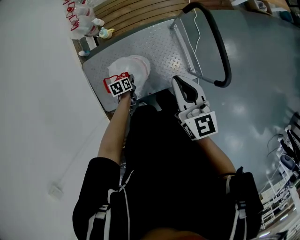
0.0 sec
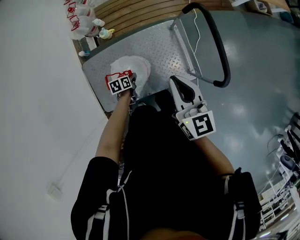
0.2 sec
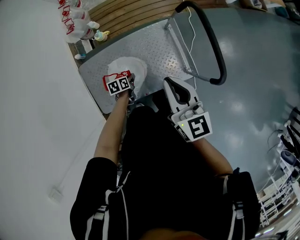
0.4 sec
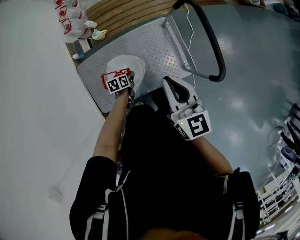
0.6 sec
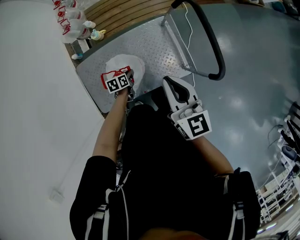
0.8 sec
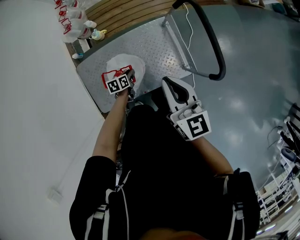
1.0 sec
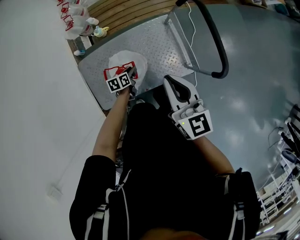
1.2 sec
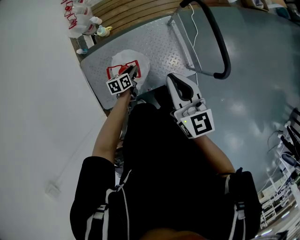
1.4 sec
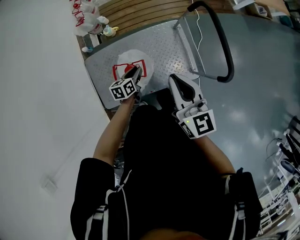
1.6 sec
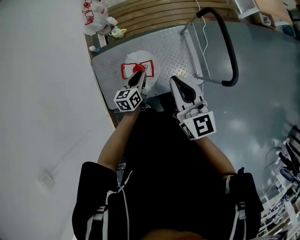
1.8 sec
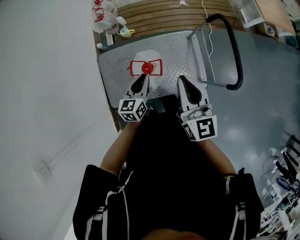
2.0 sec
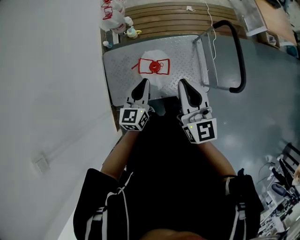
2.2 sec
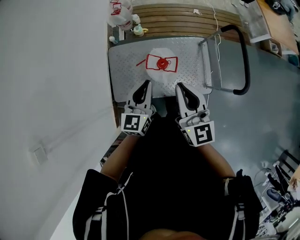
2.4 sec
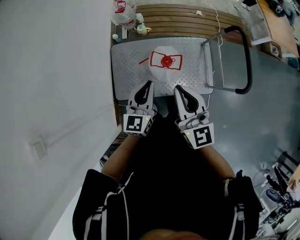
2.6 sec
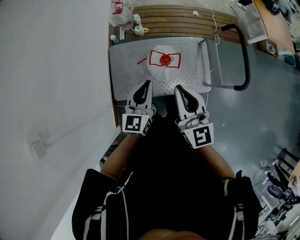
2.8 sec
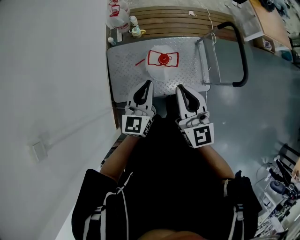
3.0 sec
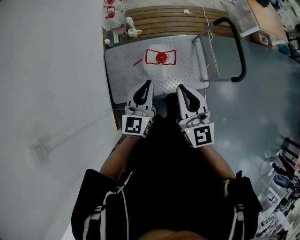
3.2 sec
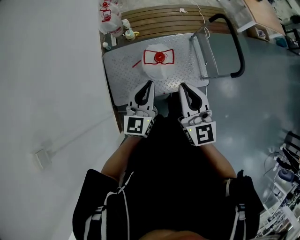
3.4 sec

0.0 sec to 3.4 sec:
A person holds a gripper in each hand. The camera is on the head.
0.0 sec to 1.6 sec: The left gripper shifts some 10 cm upward, and changes its angle by about 20 degrees, while the right gripper shifts by some 5 cm.
1.6 sec to 3.4 sec: The left gripper is displaced upward, backward and to the left by about 35 cm, and tilts its fingers about 40 degrees upward. The right gripper moves to the left, backward and upward, approximately 25 cm.

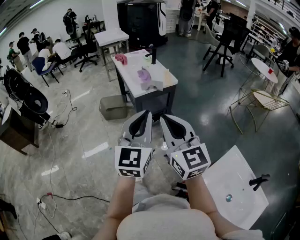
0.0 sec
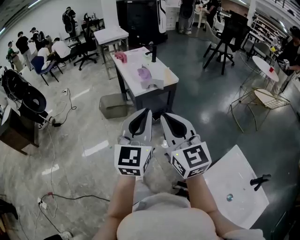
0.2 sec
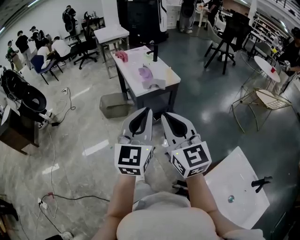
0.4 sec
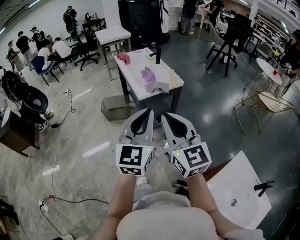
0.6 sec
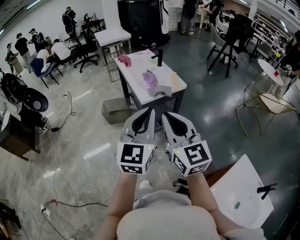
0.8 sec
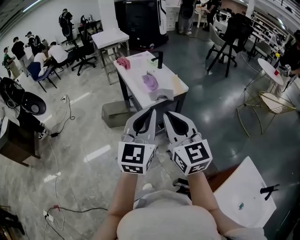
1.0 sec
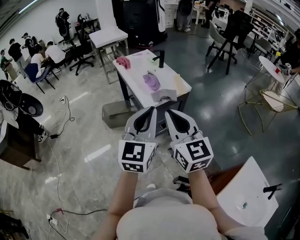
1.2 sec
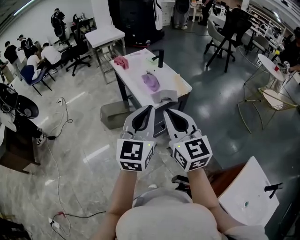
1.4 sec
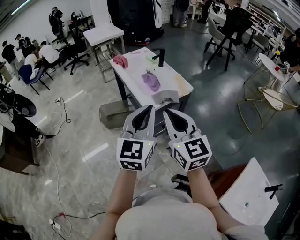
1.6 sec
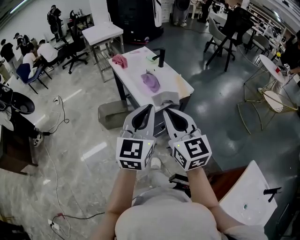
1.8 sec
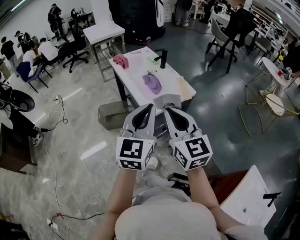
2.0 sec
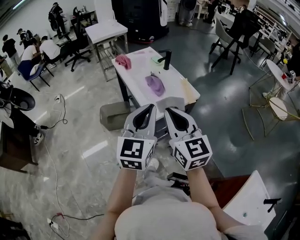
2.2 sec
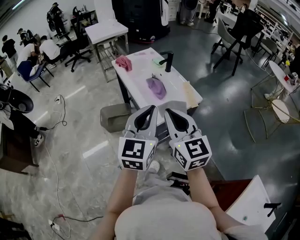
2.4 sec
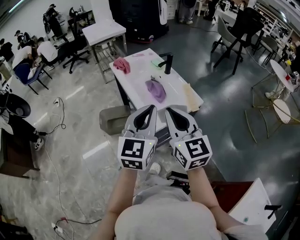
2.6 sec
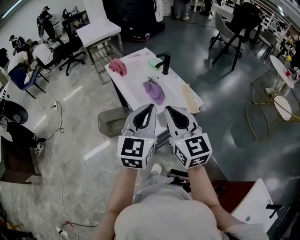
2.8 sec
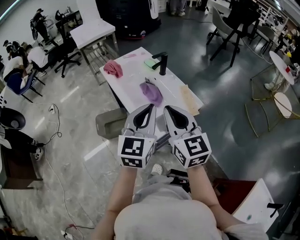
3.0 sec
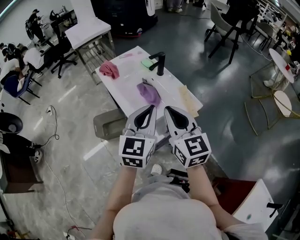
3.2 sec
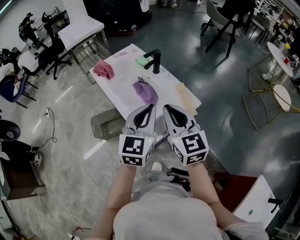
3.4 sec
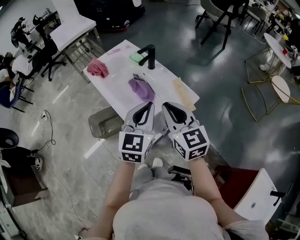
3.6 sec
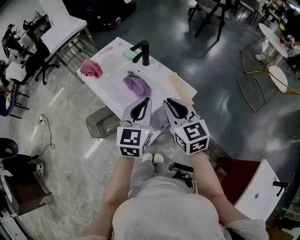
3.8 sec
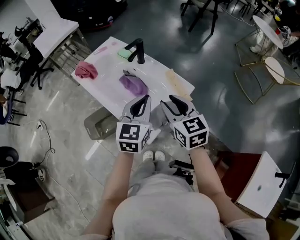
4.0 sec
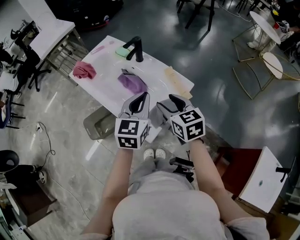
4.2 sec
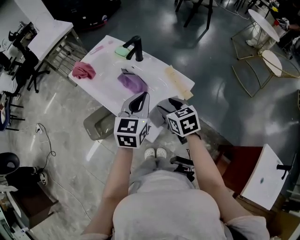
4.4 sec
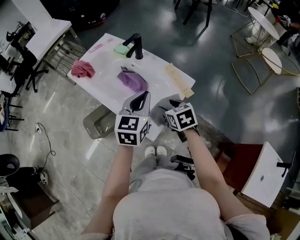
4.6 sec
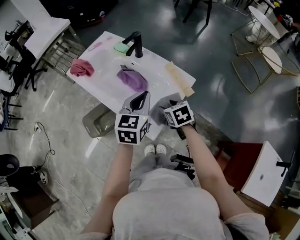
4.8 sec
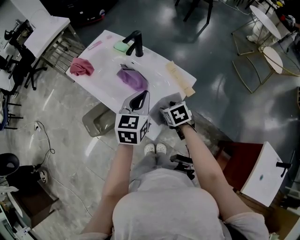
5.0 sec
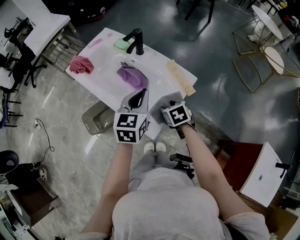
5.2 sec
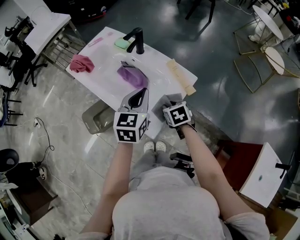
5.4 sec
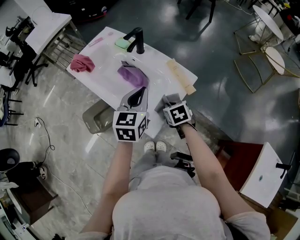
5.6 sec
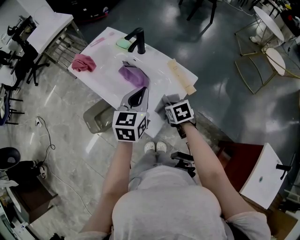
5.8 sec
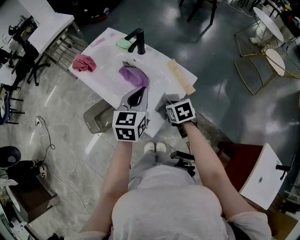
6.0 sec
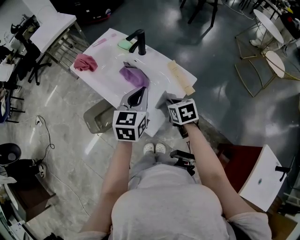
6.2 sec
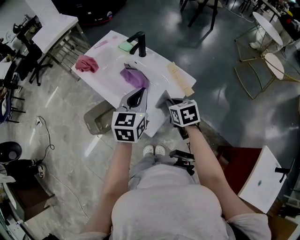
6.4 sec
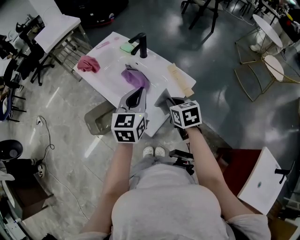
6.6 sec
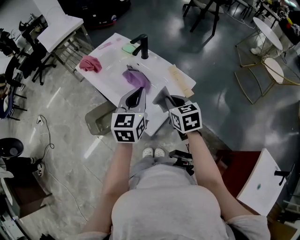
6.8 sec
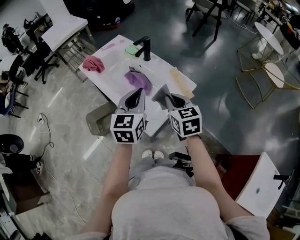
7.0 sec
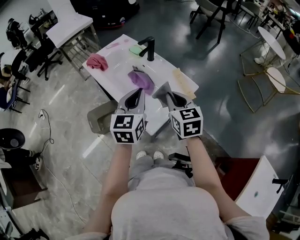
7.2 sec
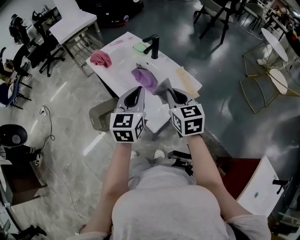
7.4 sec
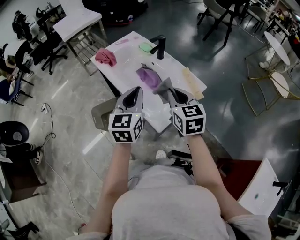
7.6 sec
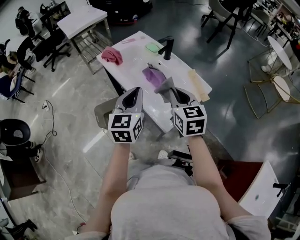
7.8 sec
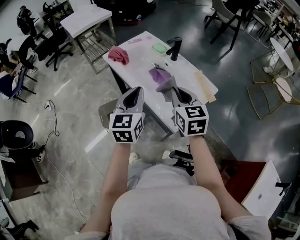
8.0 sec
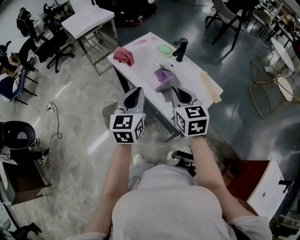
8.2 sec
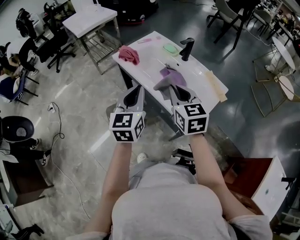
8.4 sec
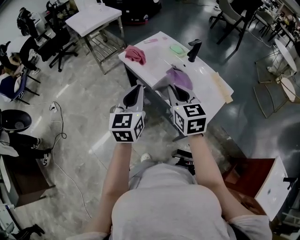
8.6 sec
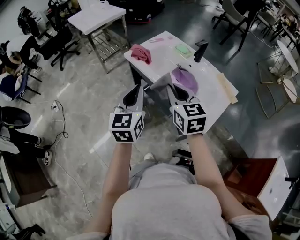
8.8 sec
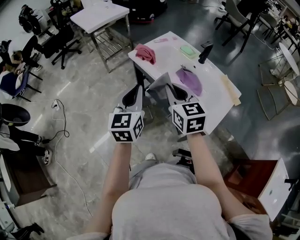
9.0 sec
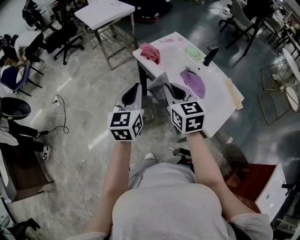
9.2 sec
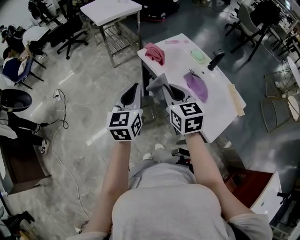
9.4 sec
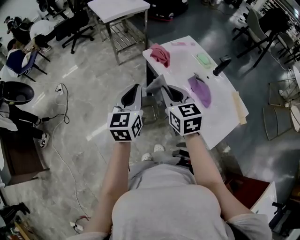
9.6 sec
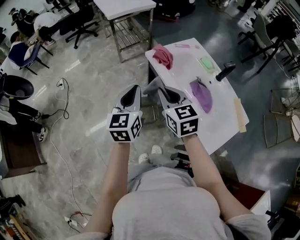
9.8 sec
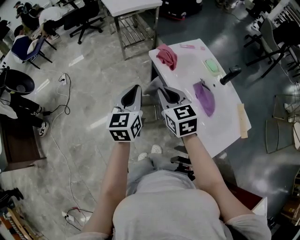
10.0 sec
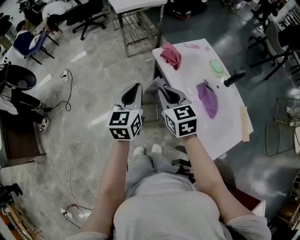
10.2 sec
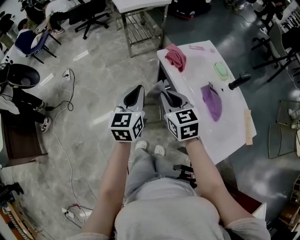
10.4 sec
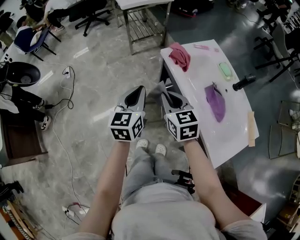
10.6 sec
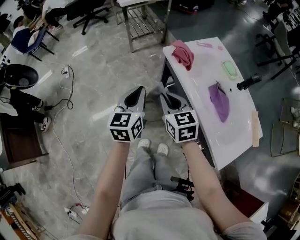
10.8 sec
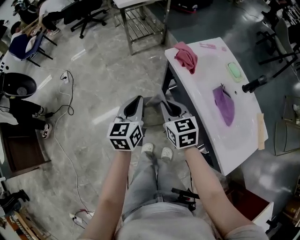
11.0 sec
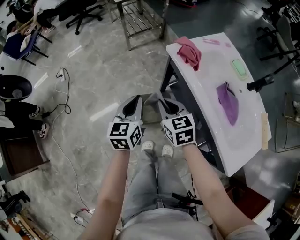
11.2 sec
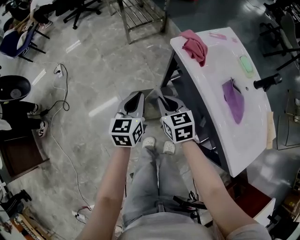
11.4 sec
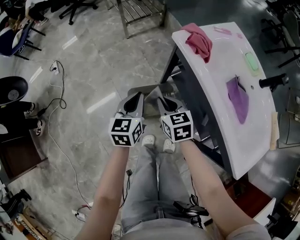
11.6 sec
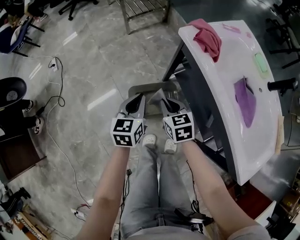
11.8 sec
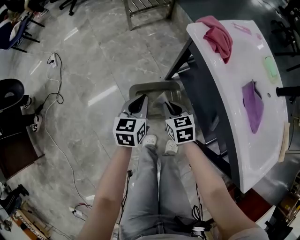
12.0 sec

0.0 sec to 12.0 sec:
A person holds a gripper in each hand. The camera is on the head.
0.0 sec to 1.6 sec: Both grippers travel together forward and to the left, about 25 cm.
1.6 sec to 3.0 sec: The two grippers go approximately 25 cm forward.
3.0 sec to 4.4 sec: The left gripper goes some 15 cm forward and downward, and swivels approximately 20 degrees. The right gripper heads downward and forward, covering about 20 cm, tips its fingers downward by roughly 30 degrees, and opens its fingers.
4.4 sec to 6.0 sec: The right gripper heads downward, covering roughly 10 cm, and closes its fingers.
6.0 sec to 7.6 sec: The right gripper travels upward by some 20 cm, and tilts its fingers about 30 degrees upward, while the left gripper heads to the left, backward and upward, covering about 10 cm.
7.6 sec to 9.0 sec: The two grippers go some 25 cm to the left.
9.0 sec to 10.4 sec: Both grippers travel together forward, to the left and downward, some 15 cm. The right gripper changes its angle by roughly 20 degrees.
10.4 sec to 12.0 sec: The grippers both shift downward by roughly 35 cm. The left gripper swivels approximately 20 degrees, while the right gripper swivels about 20 degrees.

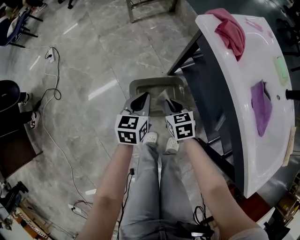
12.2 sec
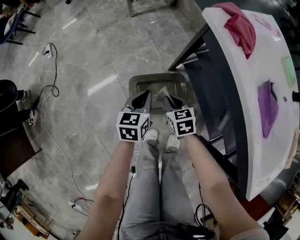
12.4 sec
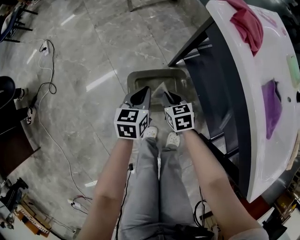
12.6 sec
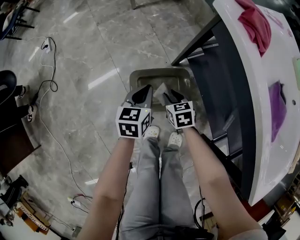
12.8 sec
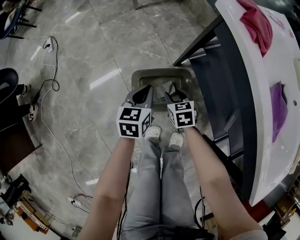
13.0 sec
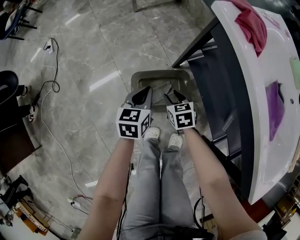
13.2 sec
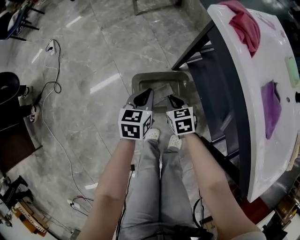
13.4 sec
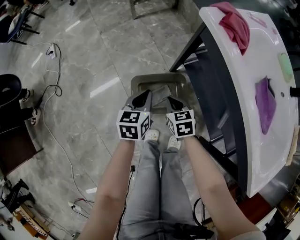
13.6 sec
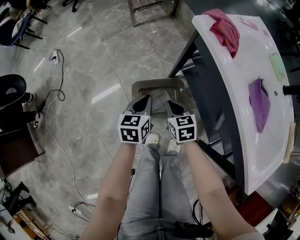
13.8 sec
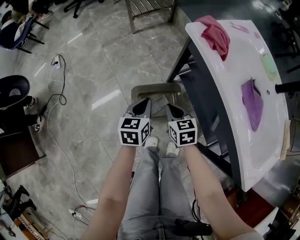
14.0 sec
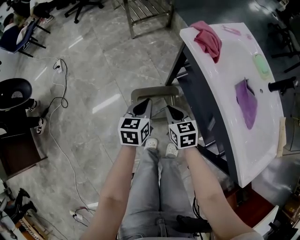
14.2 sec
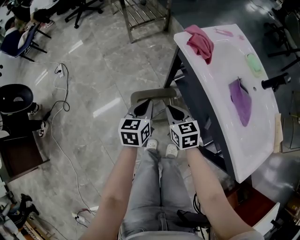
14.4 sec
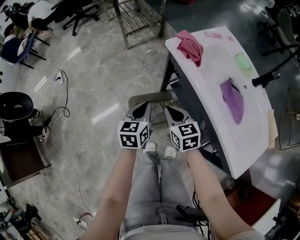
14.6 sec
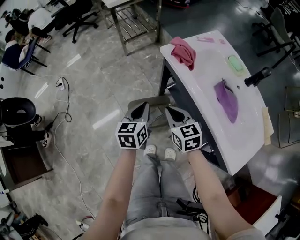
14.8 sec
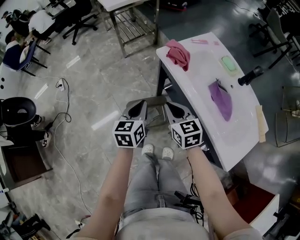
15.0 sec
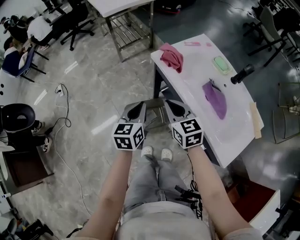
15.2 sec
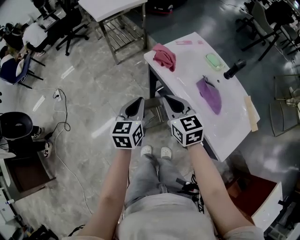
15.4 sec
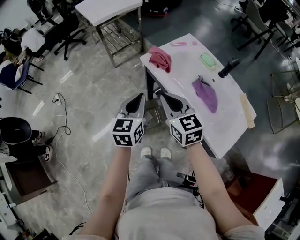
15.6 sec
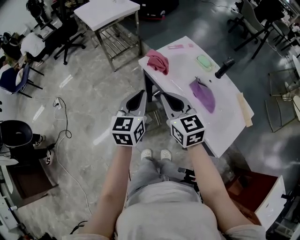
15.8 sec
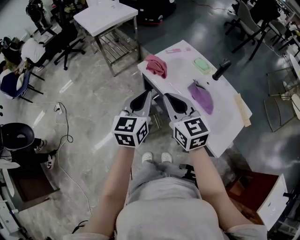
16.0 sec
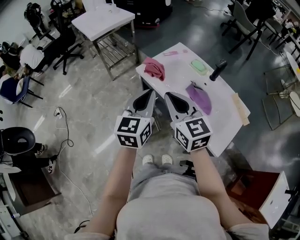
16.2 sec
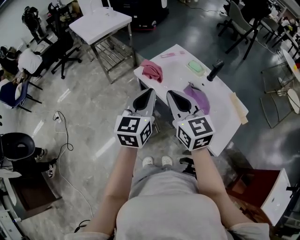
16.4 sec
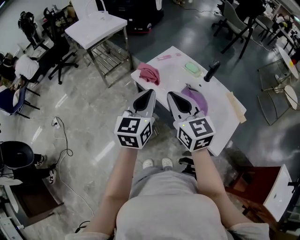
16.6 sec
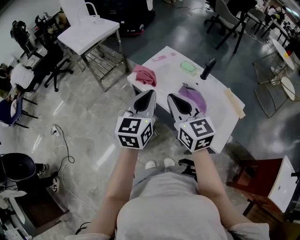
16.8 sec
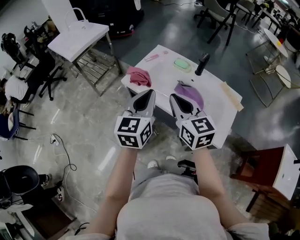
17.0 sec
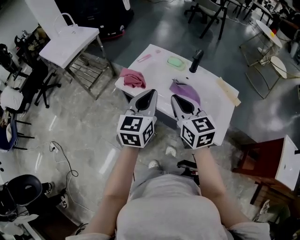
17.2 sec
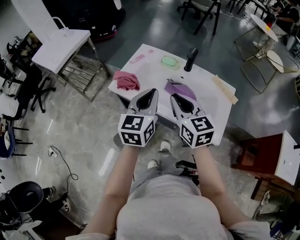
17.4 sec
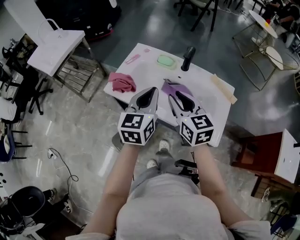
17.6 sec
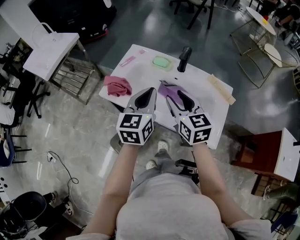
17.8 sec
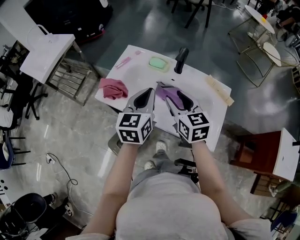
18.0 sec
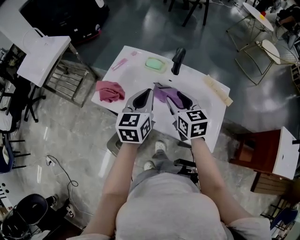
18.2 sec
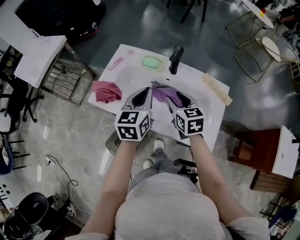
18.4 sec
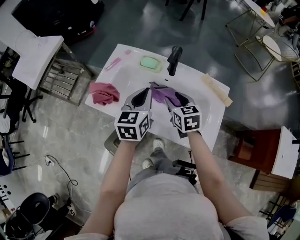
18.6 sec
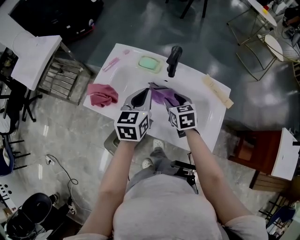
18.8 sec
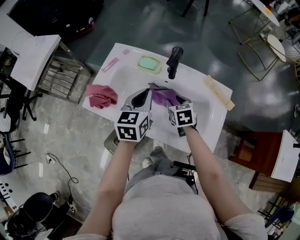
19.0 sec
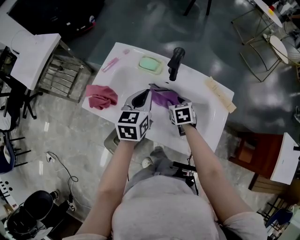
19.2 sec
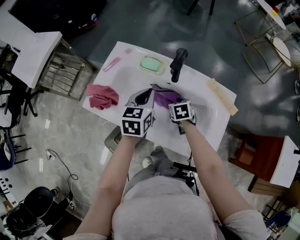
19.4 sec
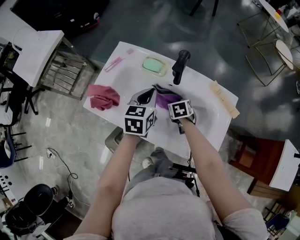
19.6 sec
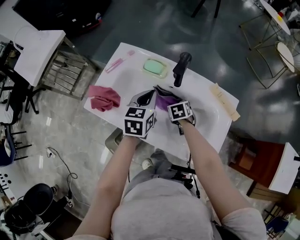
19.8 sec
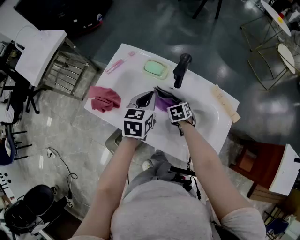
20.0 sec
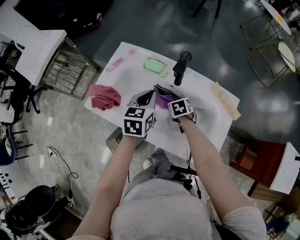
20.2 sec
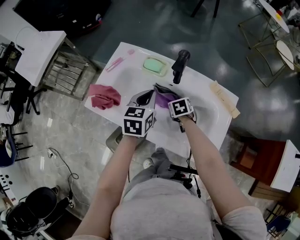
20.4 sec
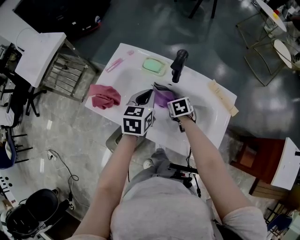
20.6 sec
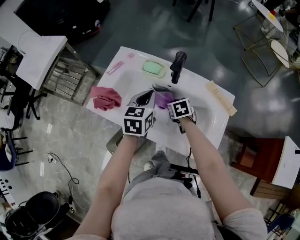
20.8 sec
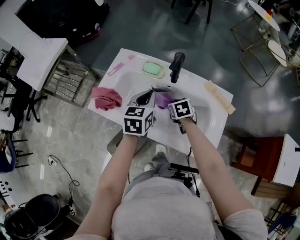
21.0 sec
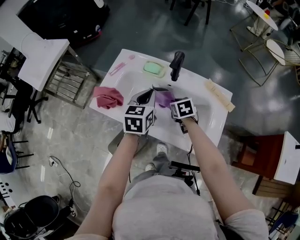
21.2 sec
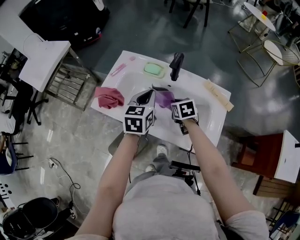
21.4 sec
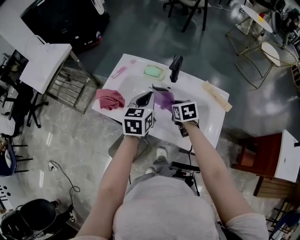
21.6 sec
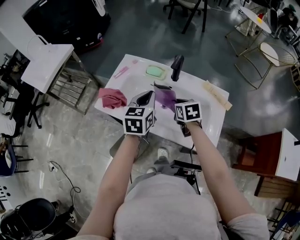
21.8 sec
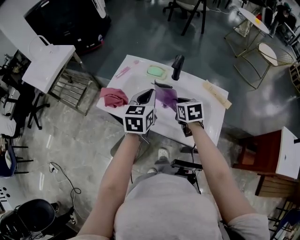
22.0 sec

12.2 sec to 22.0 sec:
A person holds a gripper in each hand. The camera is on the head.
12.2 sec to 13.6 sec: The right gripper reaches some 10 cm downward, then returns, and opens, then closes again.
13.6 sec to 15.0 sec: Both grippers travel together upward, some 30 cm. The right gripper rotates some 20 degrees.
15.0 sec to 16.4 sec: The right gripper travels upward by some 25 cm, and rotates about 20 degrees. The left gripper shifts roughly 25 cm upward and to the right, and changes its angle by approximately 30 degrees.
16.4 sec to 17.8 sec: The left gripper shifts approximately 15 cm to the right and forward, and changes its angle by about 20 degrees, while the right gripper travels to the right, forward and downward by some 20 cm, turns by roughly 30 degrees, and opens up.
17.8 sec to 19.2 sec: The right gripper shifts approximately 25 cm downward and forward, and tilts its fingers some 30 degrees downward. The left gripper shifts about 15 cm downward and forward.
19.2 sec to 20.6 sec: The right gripper closes.
20.6 sec to 22.0 sec: The left gripper heads upward and backward, covering approximately 10 cm, while the right gripper moves upward, some 15 cm, and changes its angle by approximately 20 degrees.
